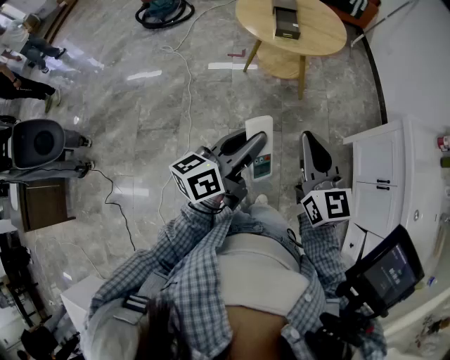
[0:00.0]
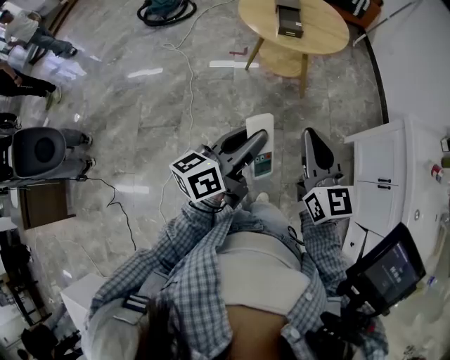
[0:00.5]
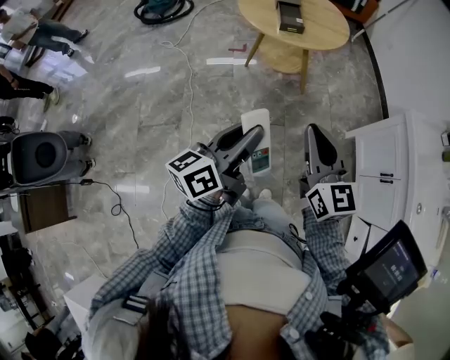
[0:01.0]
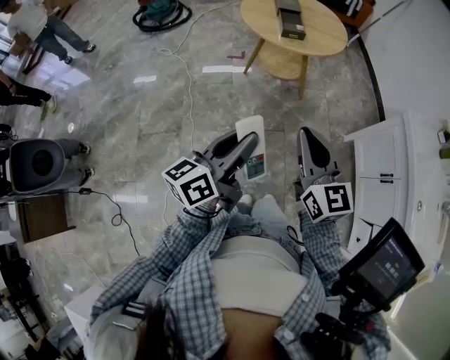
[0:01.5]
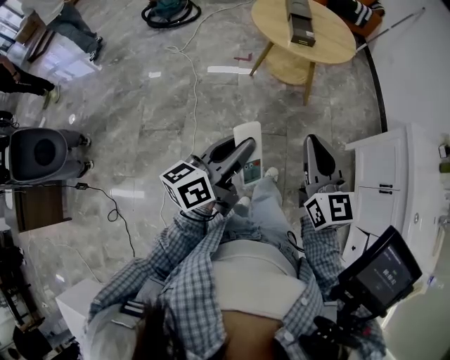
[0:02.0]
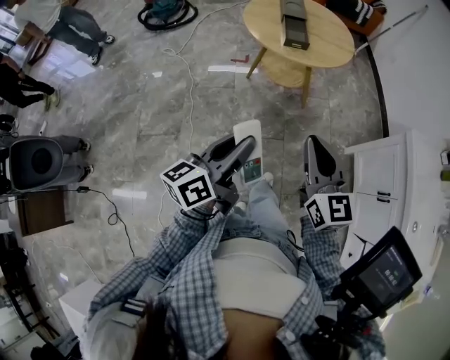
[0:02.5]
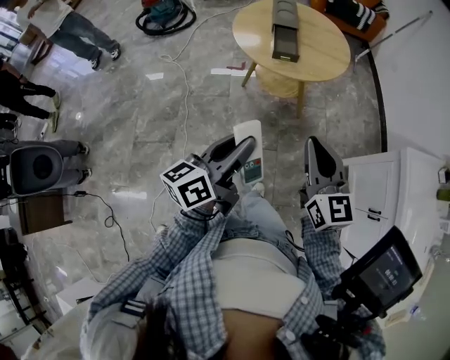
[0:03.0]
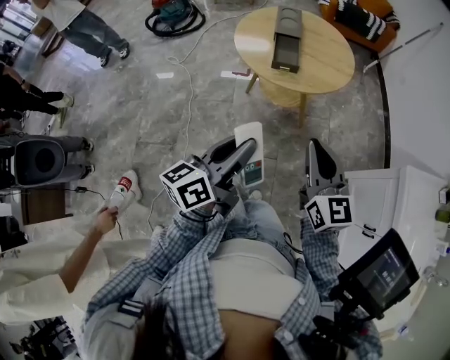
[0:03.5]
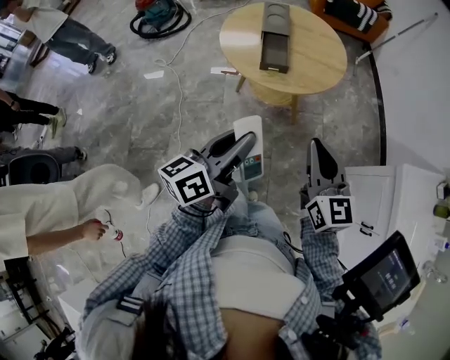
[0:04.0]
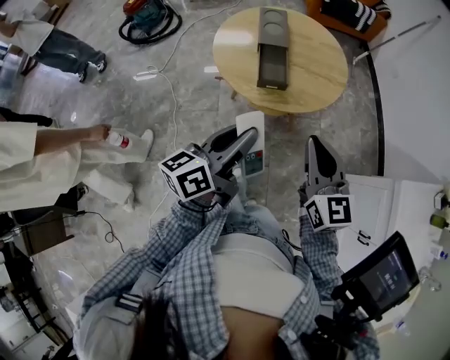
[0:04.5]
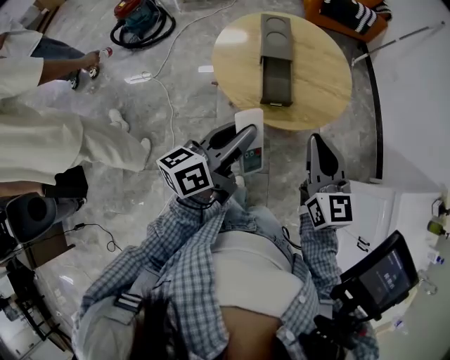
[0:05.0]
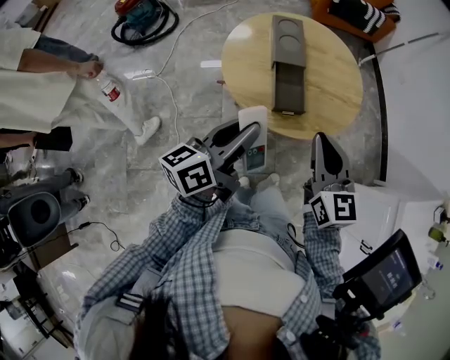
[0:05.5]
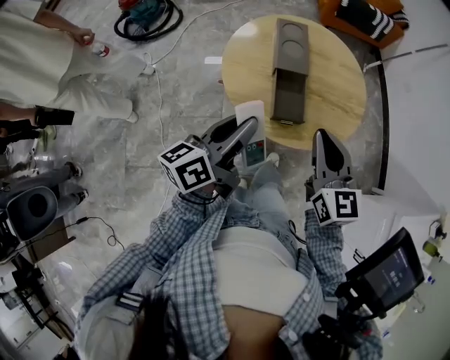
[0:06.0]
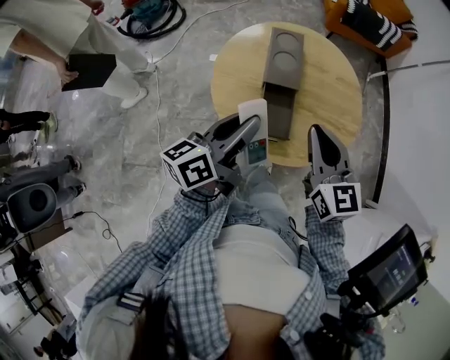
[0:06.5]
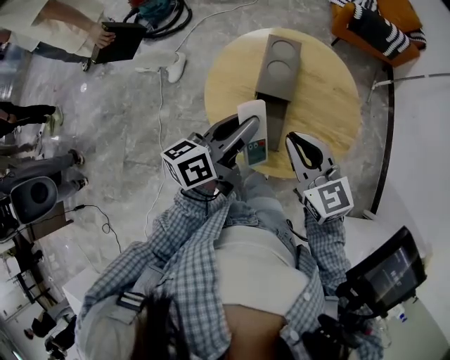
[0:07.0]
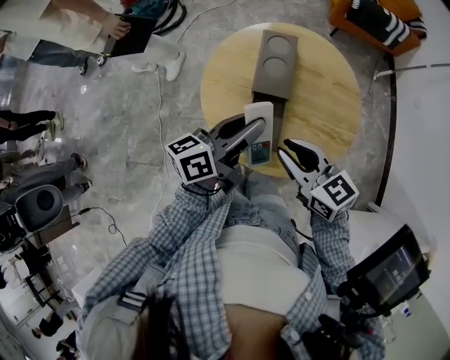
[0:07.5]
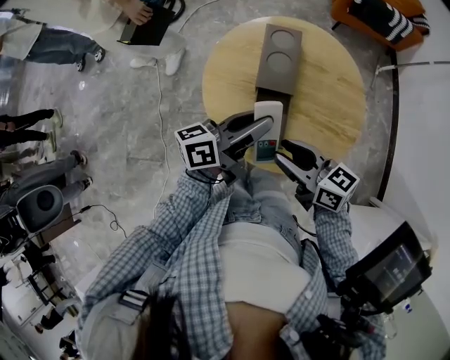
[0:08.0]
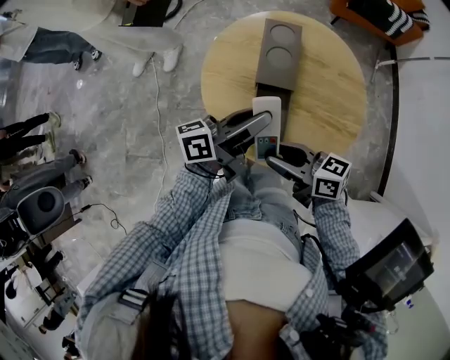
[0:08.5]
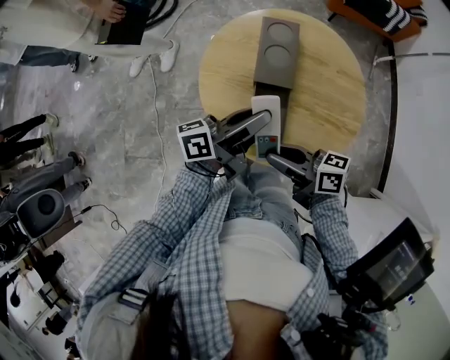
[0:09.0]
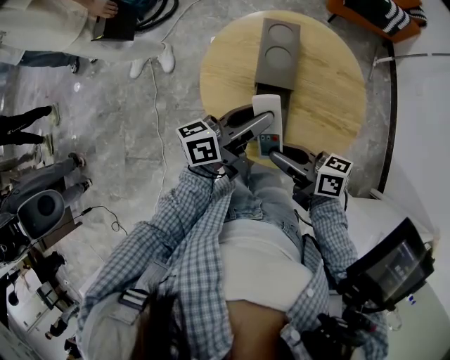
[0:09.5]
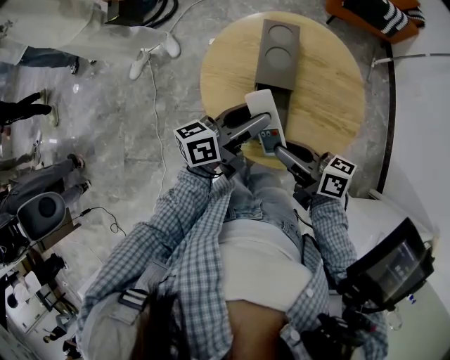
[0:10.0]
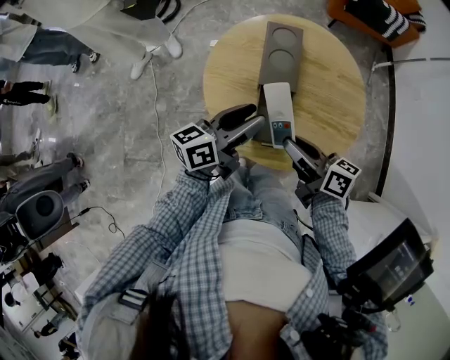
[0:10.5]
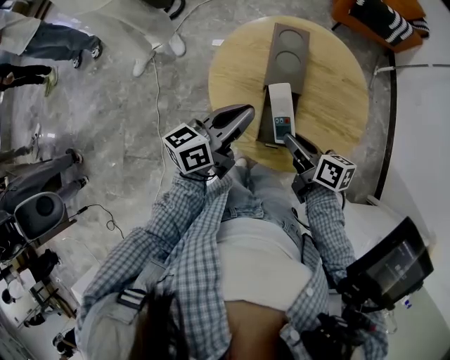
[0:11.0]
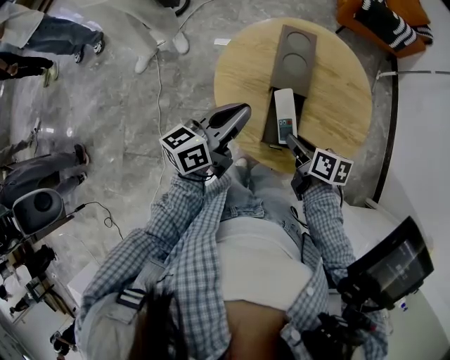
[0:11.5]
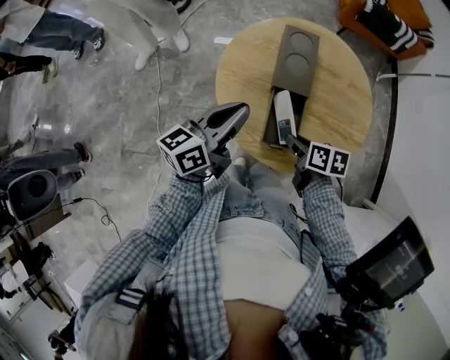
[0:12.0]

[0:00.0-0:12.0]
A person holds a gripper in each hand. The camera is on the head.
0:00.0 to 0:02.0: The left gripper is displaced to the left by roughly 5 cm.
0:02.0 to 0:04.0: The grippers both shift forward and to the right by some 25 cm.
0:04.0 to 0:06.0: Both grippers travel together forward, roughly 25 cm.
0:06.0 to 0:08.0: The right gripper heads downward, covering approximately 10 cm, rotates some 50 degrees, and opens its fingers. The left gripper shifts roughly 15 cm forward and to the right.
0:08.0 to 0:10.0: The left gripper opens its fingers.
0:10.0 to 0:12.0: The right gripper is displaced downward by about 10 cm, and angles its fingers downward, by about 40 degrees. Meanwhile the left gripper is displaced to the left by approximately 10 cm, and closes.

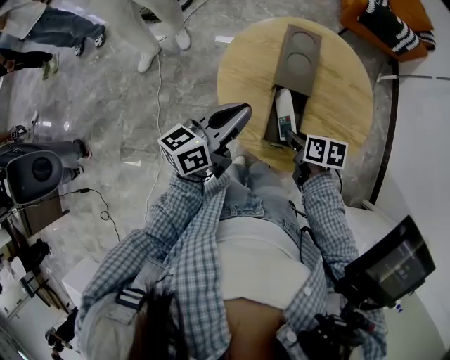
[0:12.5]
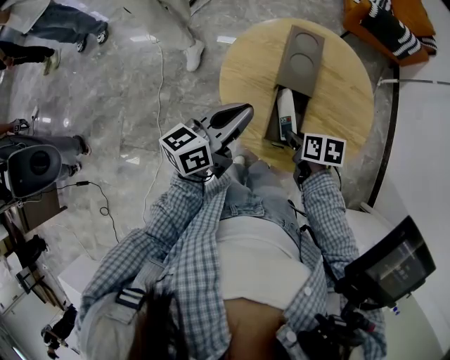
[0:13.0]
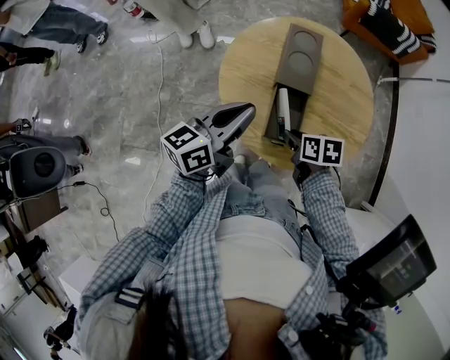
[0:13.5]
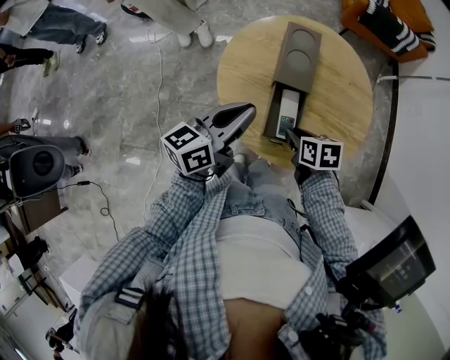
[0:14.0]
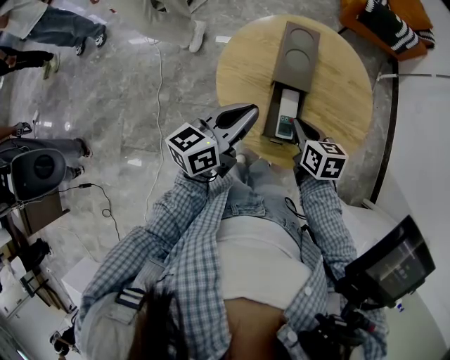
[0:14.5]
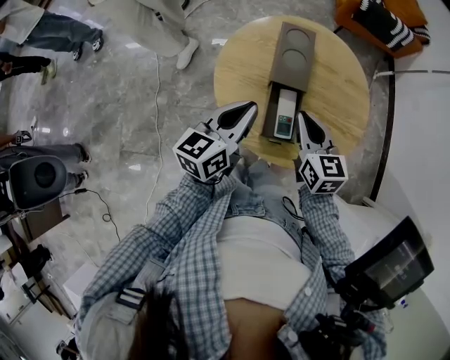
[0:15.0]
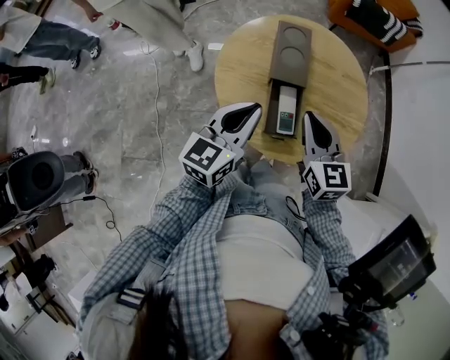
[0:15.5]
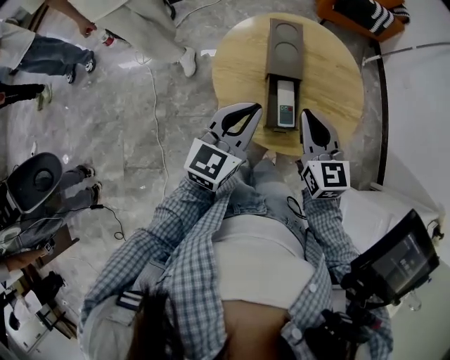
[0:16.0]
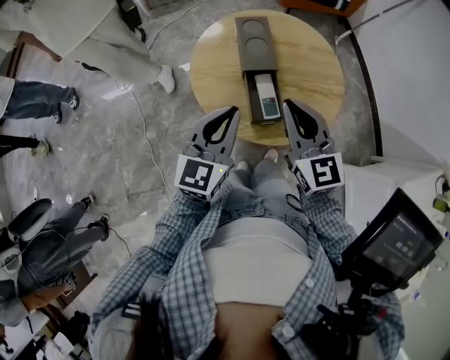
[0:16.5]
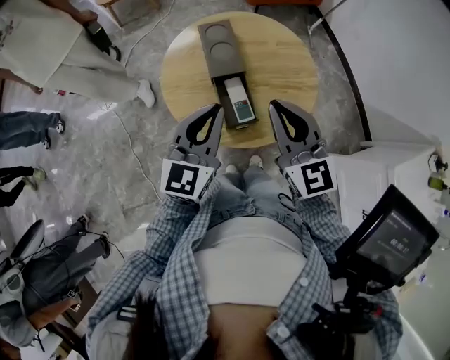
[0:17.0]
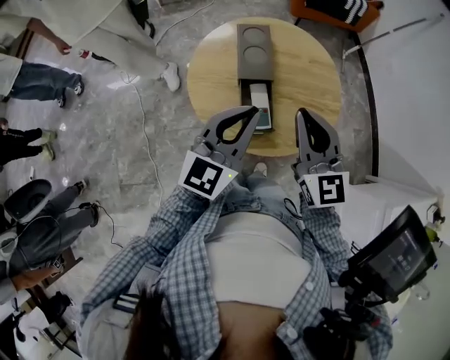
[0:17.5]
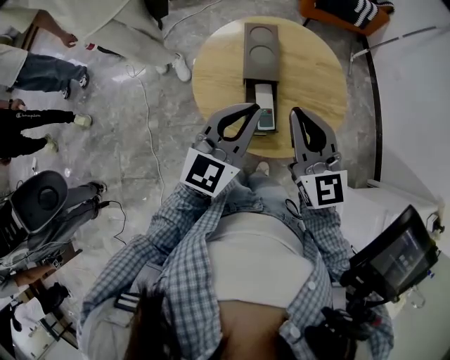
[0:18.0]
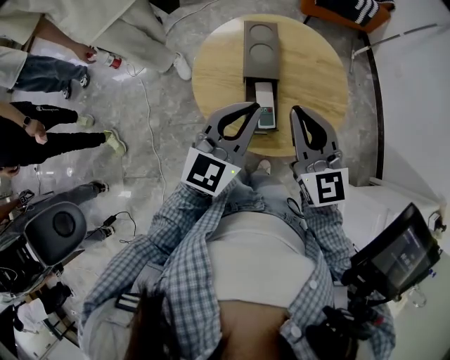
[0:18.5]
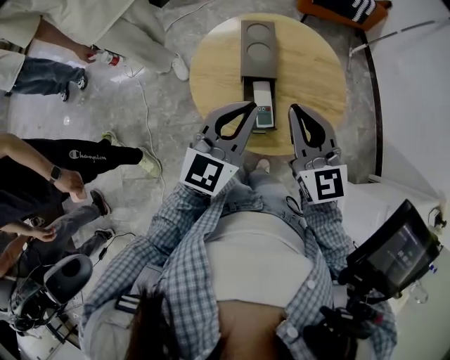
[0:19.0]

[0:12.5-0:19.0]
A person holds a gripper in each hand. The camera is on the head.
0:12.5 to 0:14.5: The right gripper turns by about 20 degrees.
0:14.5 to 0:17.0: The left gripper shifts about 5 cm upward, and changes its angle by some 40 degrees, while the right gripper goes approximately 20 cm upward, and angles its fingers upward, by about 40 degrees.
0:17.0 to 0:19.0: The grippers make only small movements.

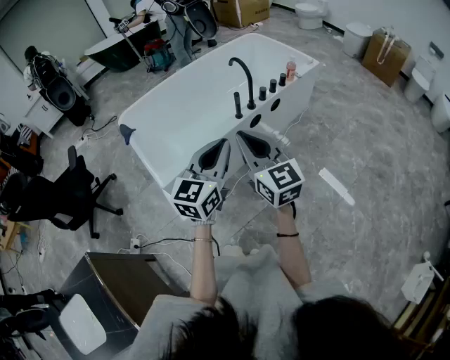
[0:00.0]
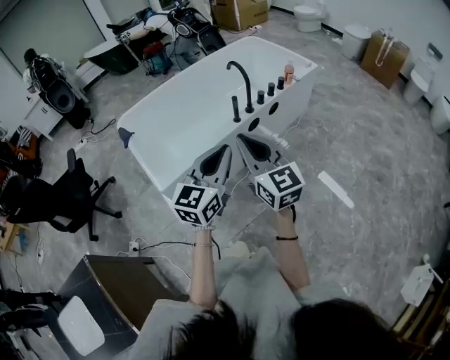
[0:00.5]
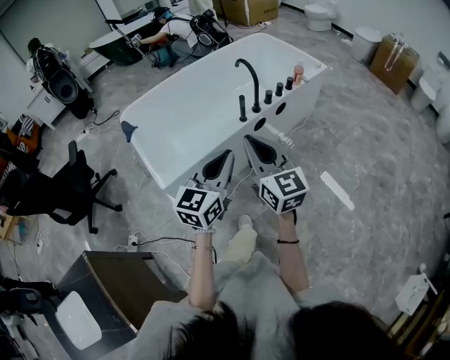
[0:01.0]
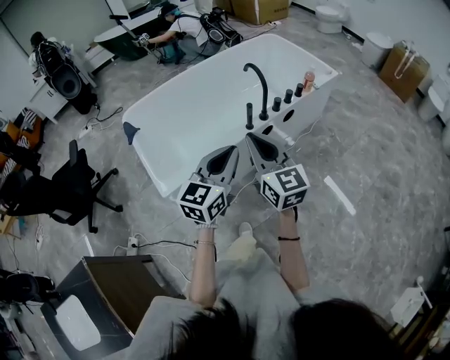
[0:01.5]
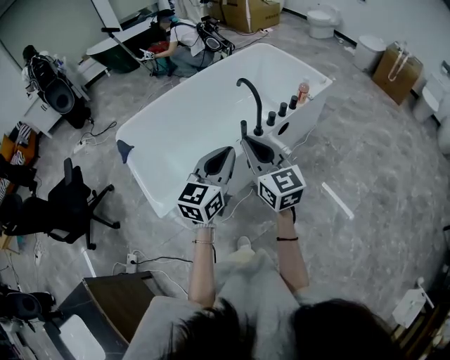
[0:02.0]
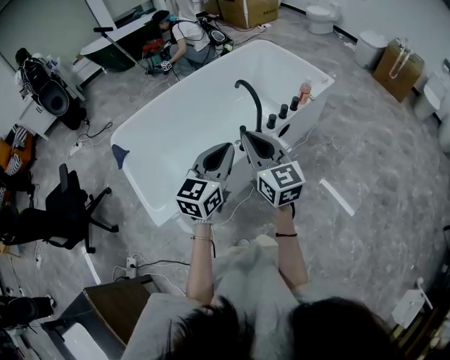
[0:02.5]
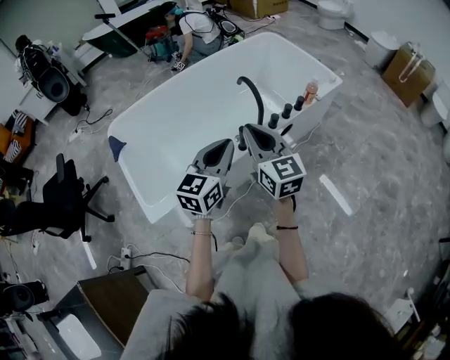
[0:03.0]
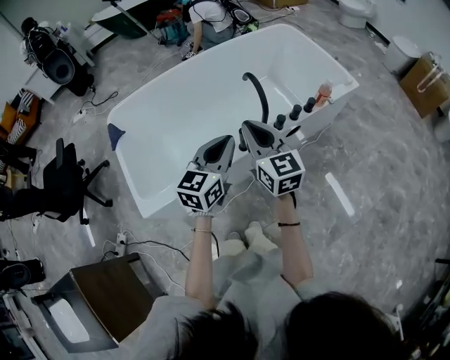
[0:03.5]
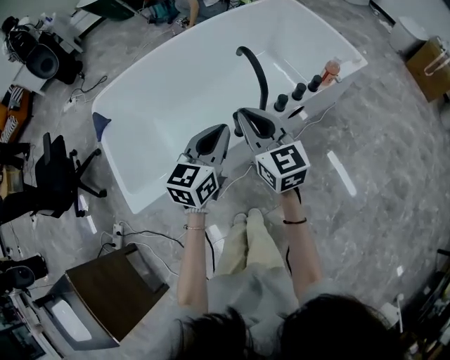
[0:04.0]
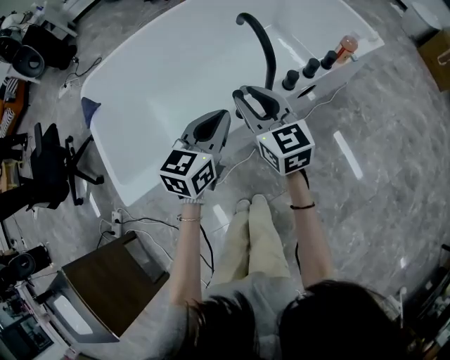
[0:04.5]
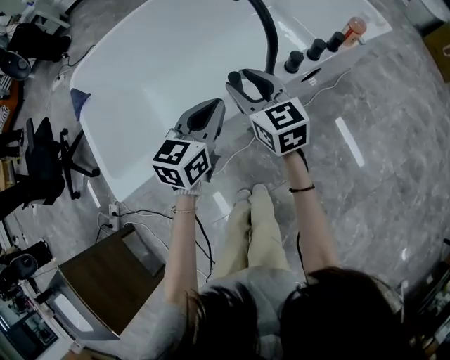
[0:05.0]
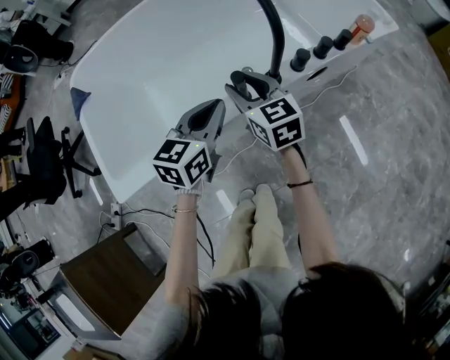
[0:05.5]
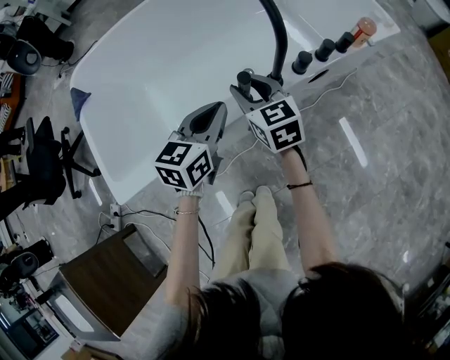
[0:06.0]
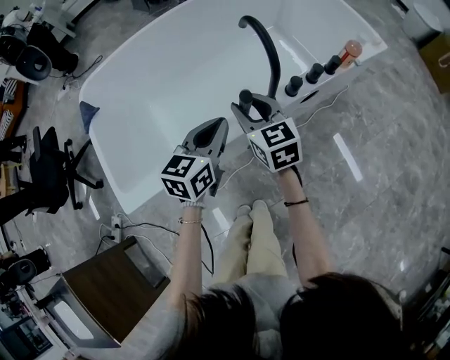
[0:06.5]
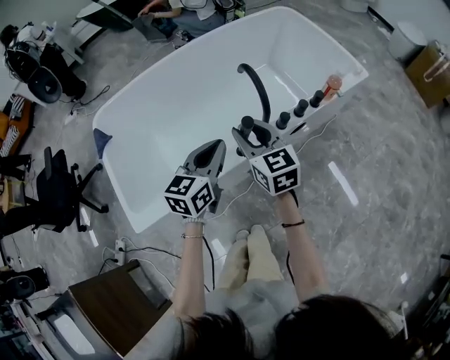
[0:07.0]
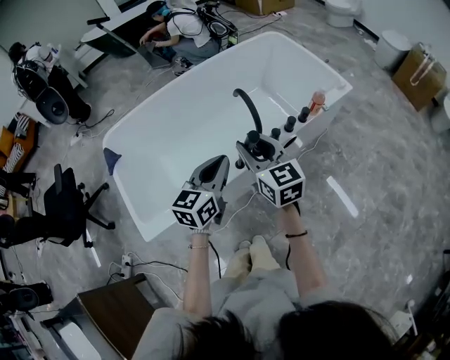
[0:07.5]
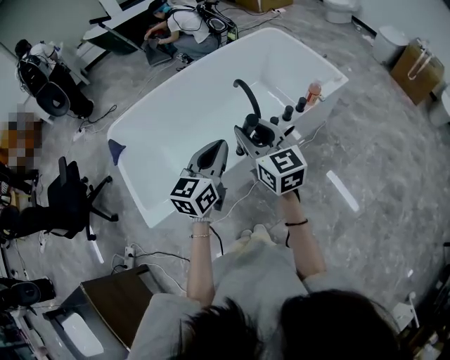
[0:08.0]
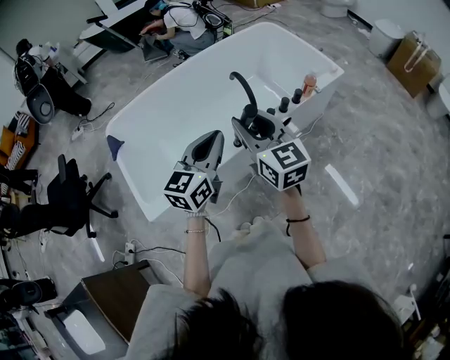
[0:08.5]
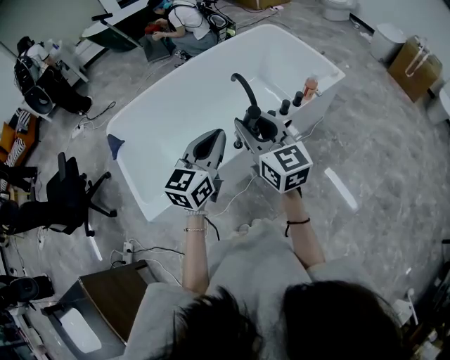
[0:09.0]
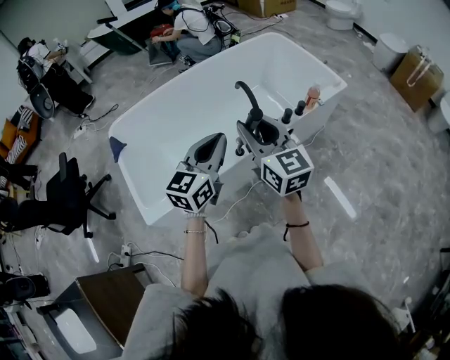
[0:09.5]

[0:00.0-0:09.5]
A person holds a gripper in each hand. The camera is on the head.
0:00.0 to 0:02.0: Both grippers move forward, about 20 cm.
0:02.0 to 0:04.0: Both grippers move forward and downward, about 25 cm.
0:04.0 to 0:05.5: The two grippers go about 20 cm downward. The right gripper opens.
0:05.5 to 0:07.5: Both grippers move upward, some 25 cm.
0:07.5 to 0:09.5: The left gripper is displaced upward by some 10 cm. The right gripper travels upward and backward by roughly 10 cm.
